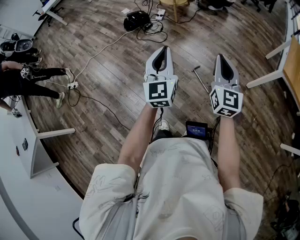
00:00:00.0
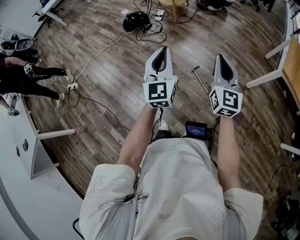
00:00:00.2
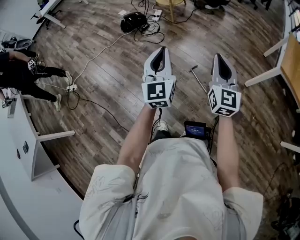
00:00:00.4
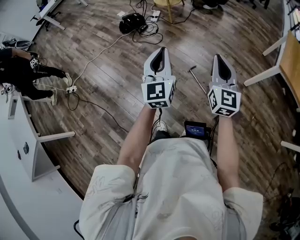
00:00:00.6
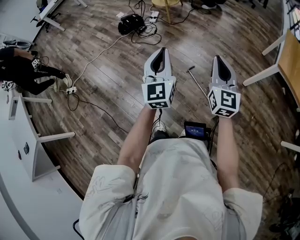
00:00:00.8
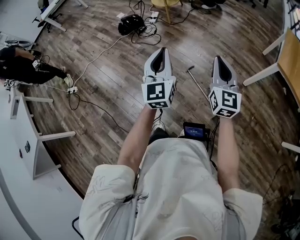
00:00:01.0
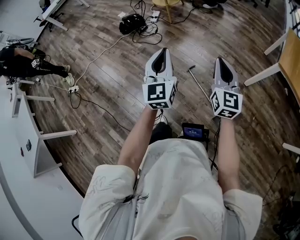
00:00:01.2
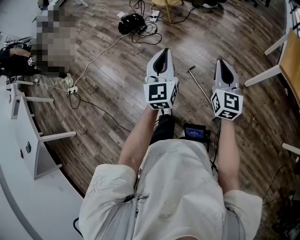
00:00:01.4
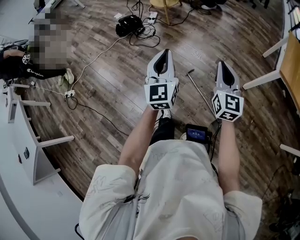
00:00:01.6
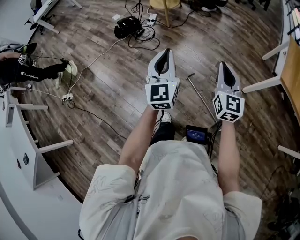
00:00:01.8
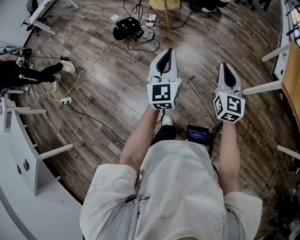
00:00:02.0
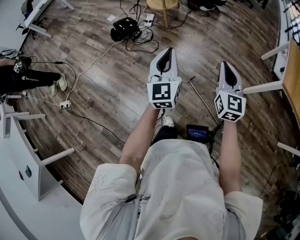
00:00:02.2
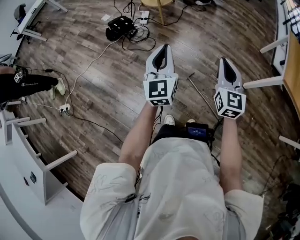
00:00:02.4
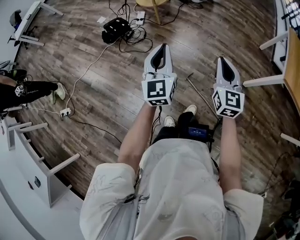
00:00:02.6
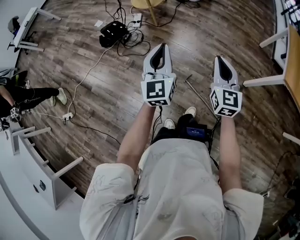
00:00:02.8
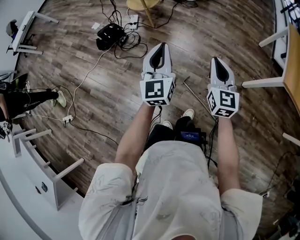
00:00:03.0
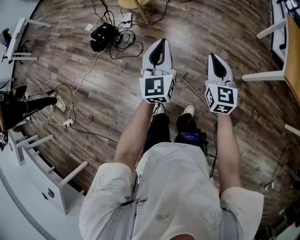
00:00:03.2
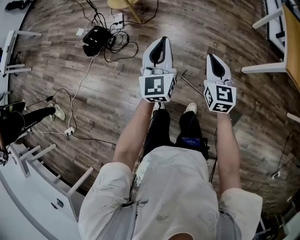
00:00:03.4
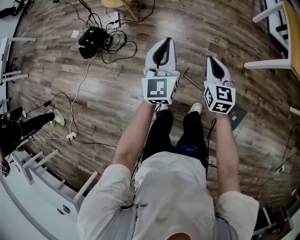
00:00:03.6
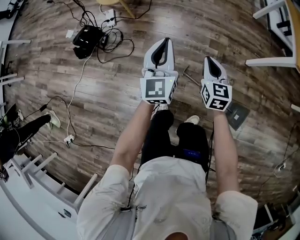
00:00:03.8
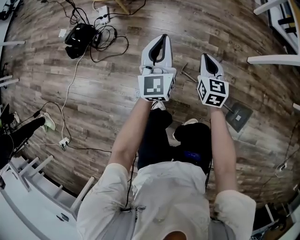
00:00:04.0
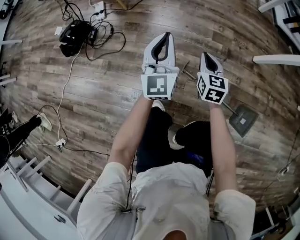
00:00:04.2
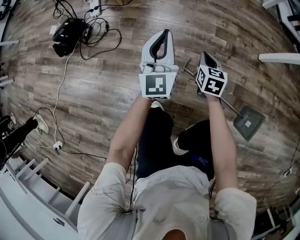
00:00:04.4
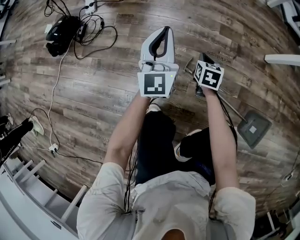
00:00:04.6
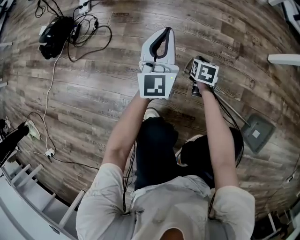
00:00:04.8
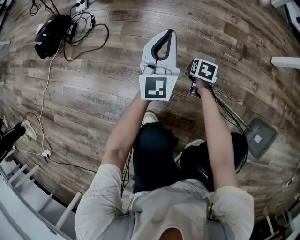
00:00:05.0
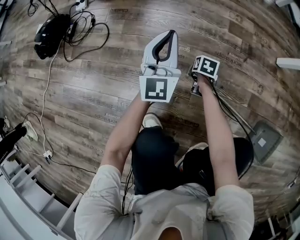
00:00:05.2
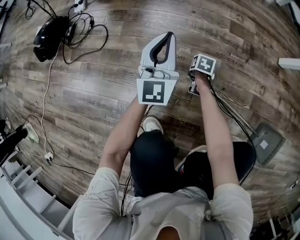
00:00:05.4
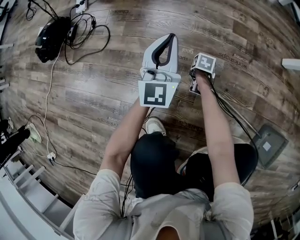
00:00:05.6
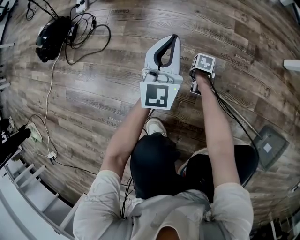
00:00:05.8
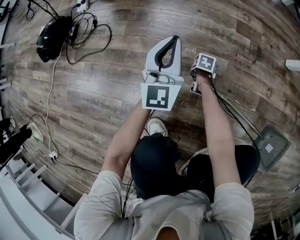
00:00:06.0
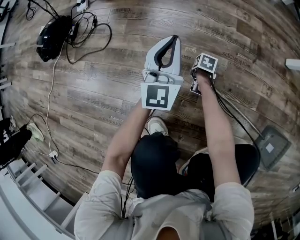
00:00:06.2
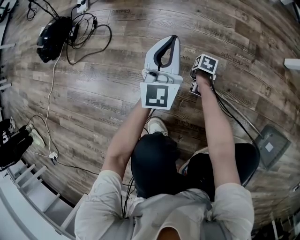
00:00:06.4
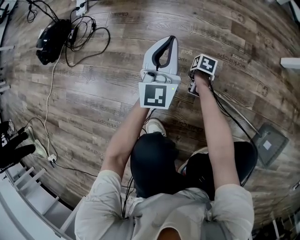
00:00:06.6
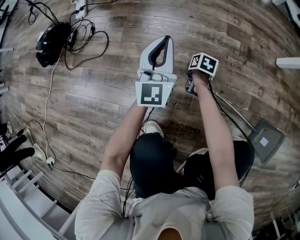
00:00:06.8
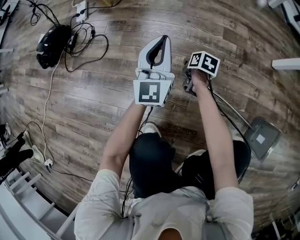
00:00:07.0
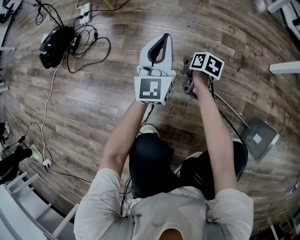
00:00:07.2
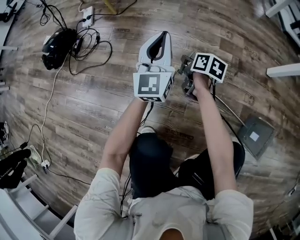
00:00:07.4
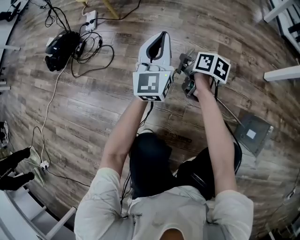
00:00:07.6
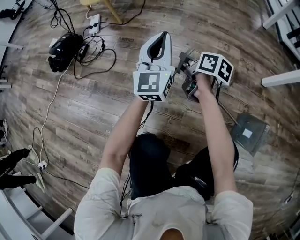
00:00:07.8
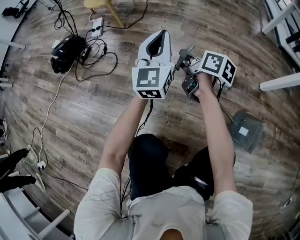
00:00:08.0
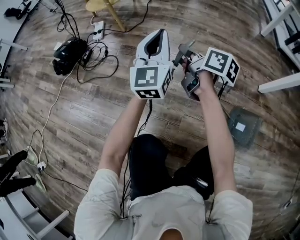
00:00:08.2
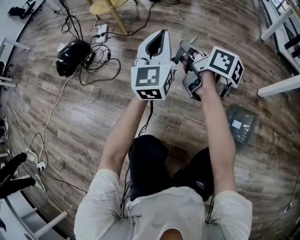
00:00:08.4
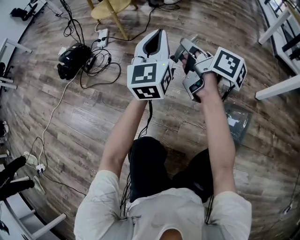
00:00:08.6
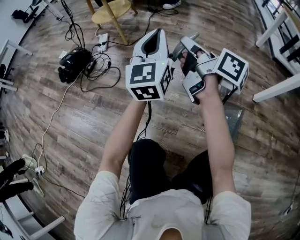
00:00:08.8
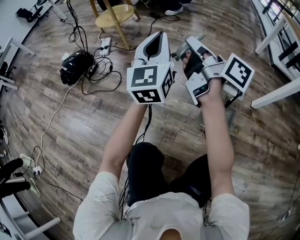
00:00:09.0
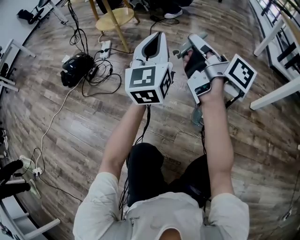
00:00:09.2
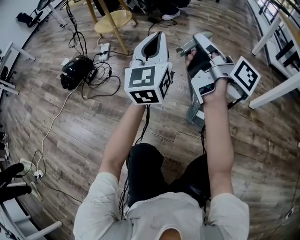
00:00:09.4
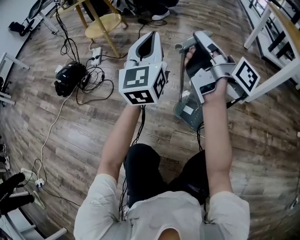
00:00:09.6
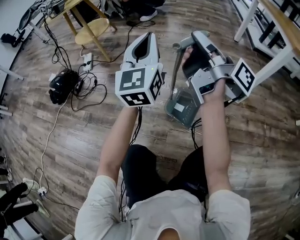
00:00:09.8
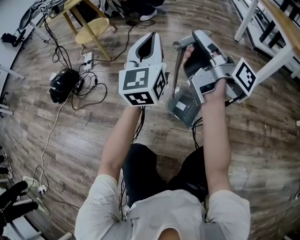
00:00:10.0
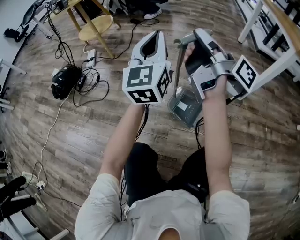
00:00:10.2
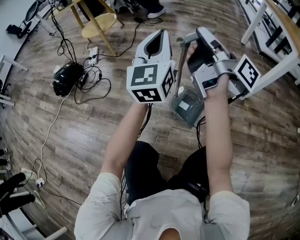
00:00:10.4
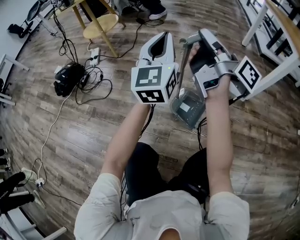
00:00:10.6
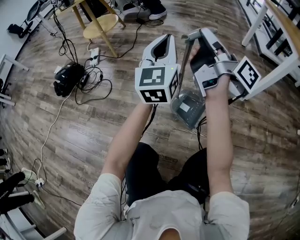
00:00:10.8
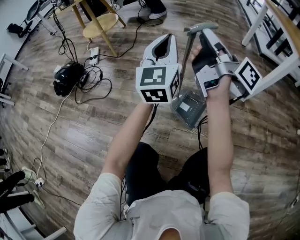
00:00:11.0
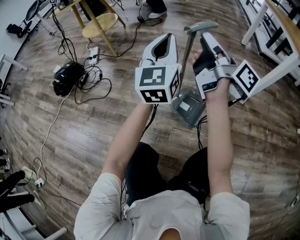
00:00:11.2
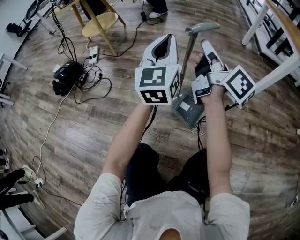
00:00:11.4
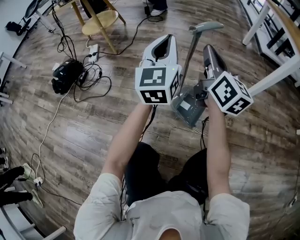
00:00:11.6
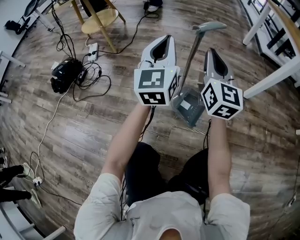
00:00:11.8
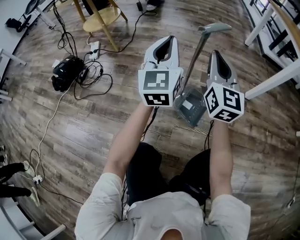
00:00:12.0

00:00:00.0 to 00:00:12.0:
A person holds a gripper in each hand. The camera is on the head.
00:00:00.0 to 00:00:01.6: The right gripper heads to the right, downward and forward, covering some 15 cm; the left gripper moves to the right, forward and downward, about 15 cm.
00:00:01.6 to 00:00:03.0: The two grippers travel together, forward, about 40 cm.
00:00:03.0 to 00:00:04.4: The two grippers go about 80 cm downward. The right gripper angles its fingers downward, by some 30 degrees.
00:00:04.4 to 00:00:06.0: Both grippers move downward, approximately 60 cm. The right gripper points its fingers roughly 40 degrees further downward, and opens up.
00:00:06.0 to 00:00:07.6: The right gripper travels upward by roughly 40 cm, and tilts its fingers roughly 40 degrees upward. Meanwhile the left gripper travels upward by approximately 25 cm.
00:00:07.6 to 00:00:09.0: The left gripper shifts some 30 cm upward; the right gripper is displaced upward by roughly 40 cm, and angles its fingers upward, by some 40 degrees.
00:00:09.0 to 00:00:10.4: The grippers both shift to the right by roughly 15 cm.
00:00:10.4 to 00:00:12.0: The left gripper goes roughly 10 cm to the left and downward. The right gripper moves downward, approximately 10 cm, and twists roughly 80 degrees counterclockwise, seen from behind.

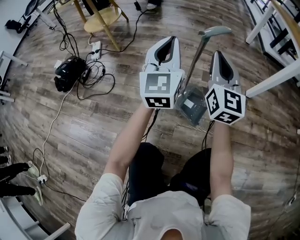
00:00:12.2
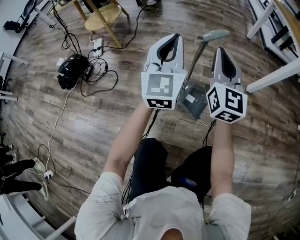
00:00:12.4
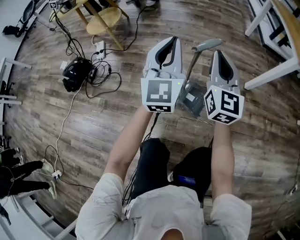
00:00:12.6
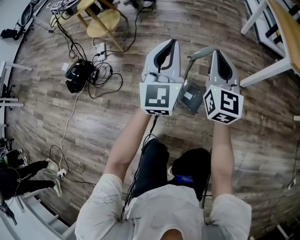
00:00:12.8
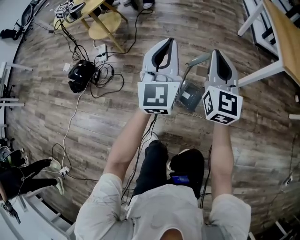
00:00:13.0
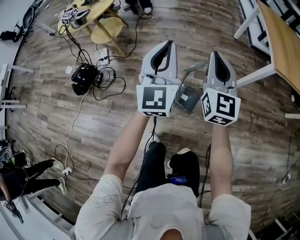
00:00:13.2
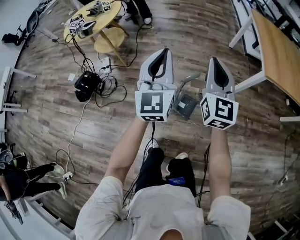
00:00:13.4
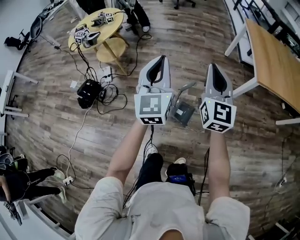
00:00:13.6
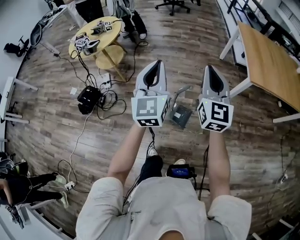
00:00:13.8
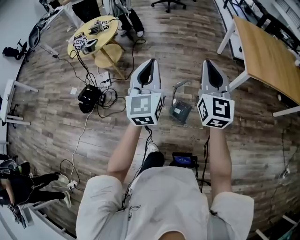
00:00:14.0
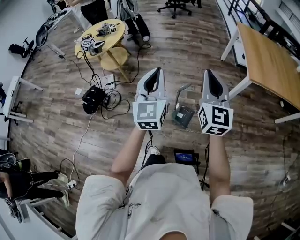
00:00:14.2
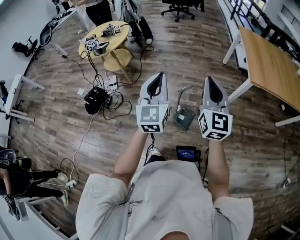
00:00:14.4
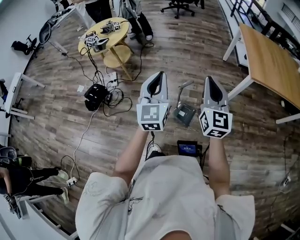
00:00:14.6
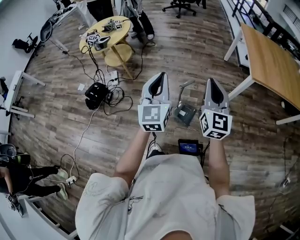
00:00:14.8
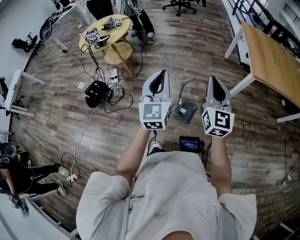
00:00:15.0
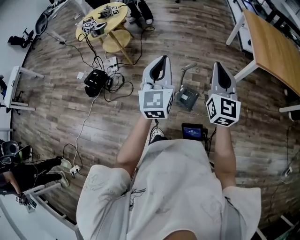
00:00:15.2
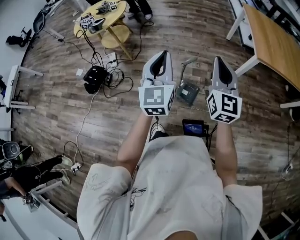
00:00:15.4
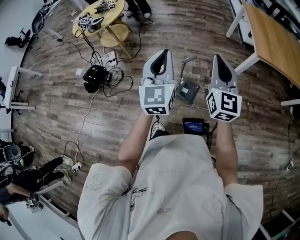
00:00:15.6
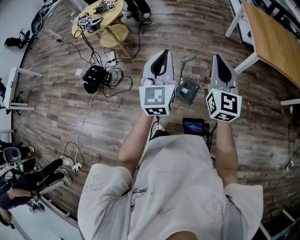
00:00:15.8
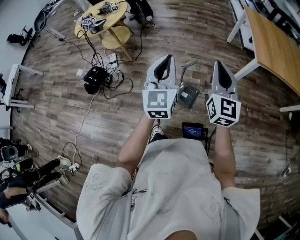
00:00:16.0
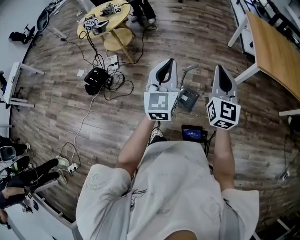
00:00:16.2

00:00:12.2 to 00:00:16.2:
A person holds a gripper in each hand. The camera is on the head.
00:00:12.2 to 00:00:13.6: The two grippers go about 90 cm upward.
00:00:13.6 to 00:00:14.8: Both grippers travel together backward, approximately 25 cm.
00:00:14.8 to 00:00:16.2: The right gripper ends up about 5 cm from where it was. Meanwhile the left gripper shifts by some 5 cm.

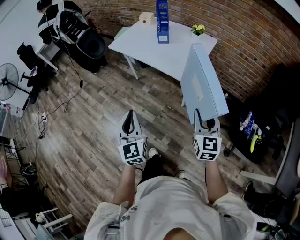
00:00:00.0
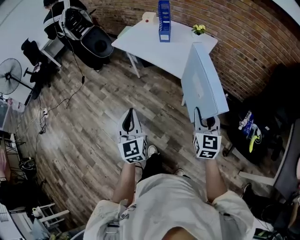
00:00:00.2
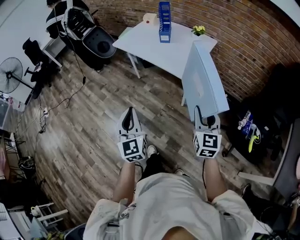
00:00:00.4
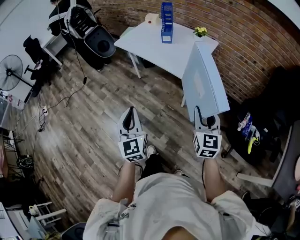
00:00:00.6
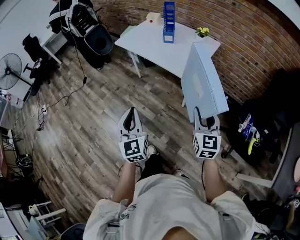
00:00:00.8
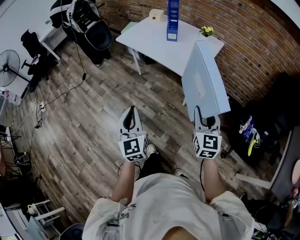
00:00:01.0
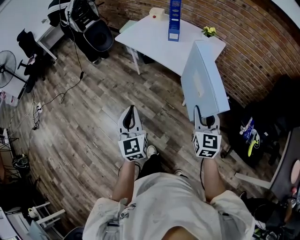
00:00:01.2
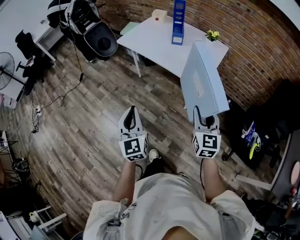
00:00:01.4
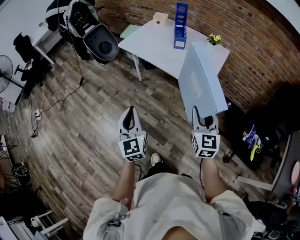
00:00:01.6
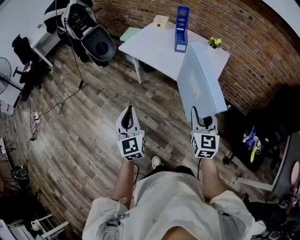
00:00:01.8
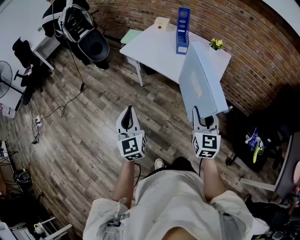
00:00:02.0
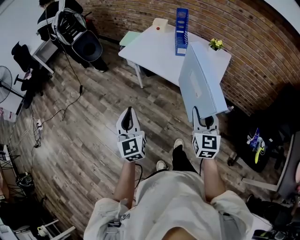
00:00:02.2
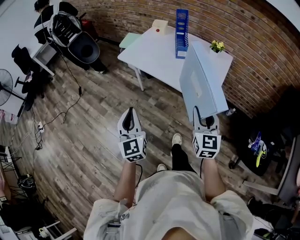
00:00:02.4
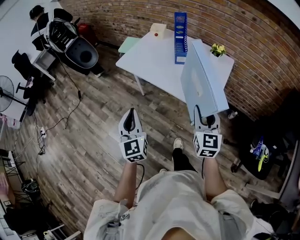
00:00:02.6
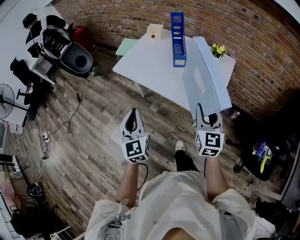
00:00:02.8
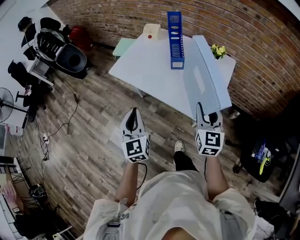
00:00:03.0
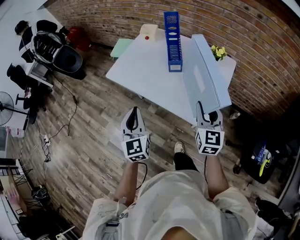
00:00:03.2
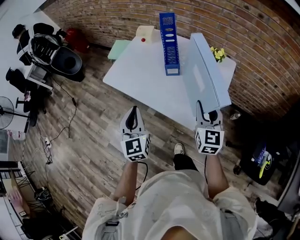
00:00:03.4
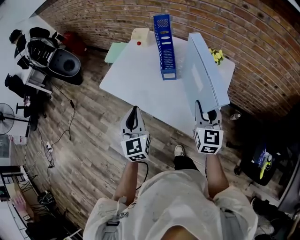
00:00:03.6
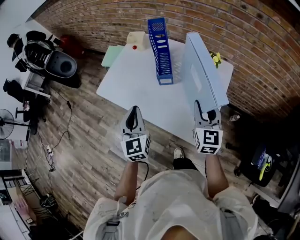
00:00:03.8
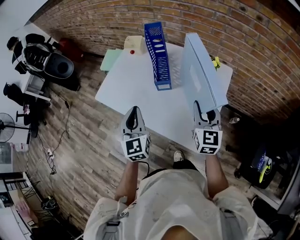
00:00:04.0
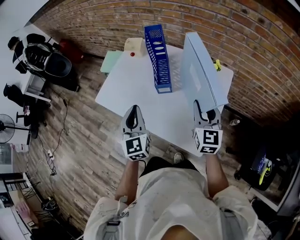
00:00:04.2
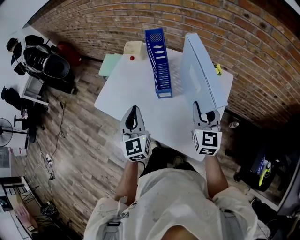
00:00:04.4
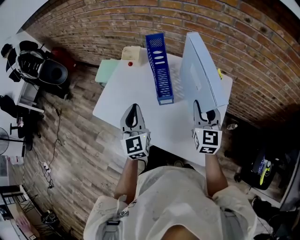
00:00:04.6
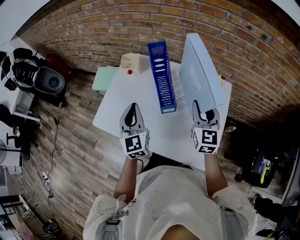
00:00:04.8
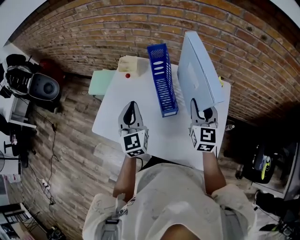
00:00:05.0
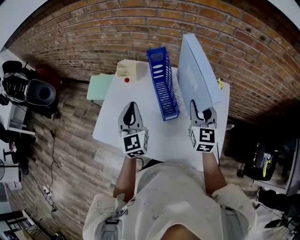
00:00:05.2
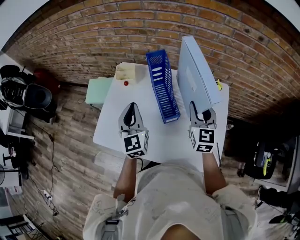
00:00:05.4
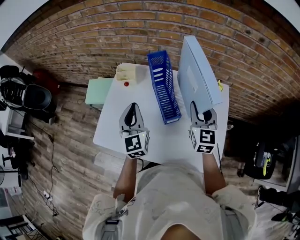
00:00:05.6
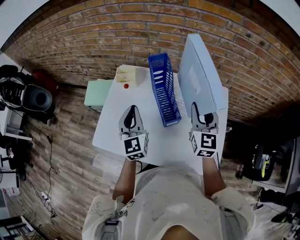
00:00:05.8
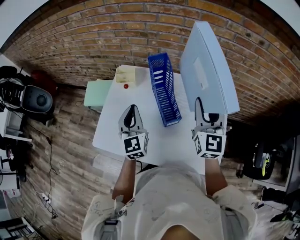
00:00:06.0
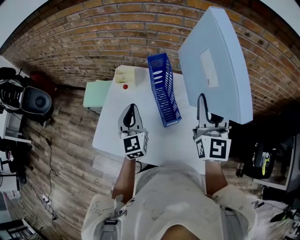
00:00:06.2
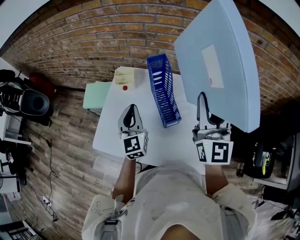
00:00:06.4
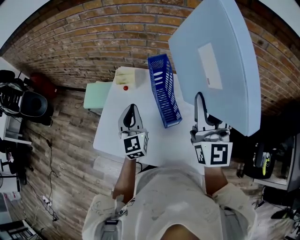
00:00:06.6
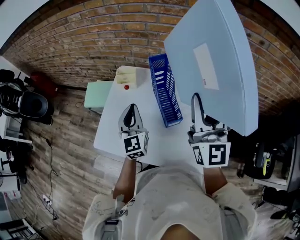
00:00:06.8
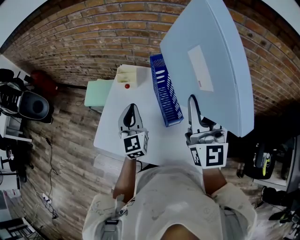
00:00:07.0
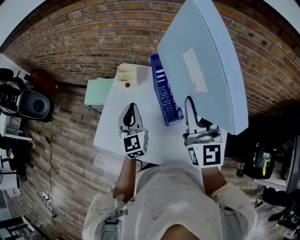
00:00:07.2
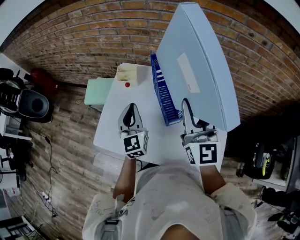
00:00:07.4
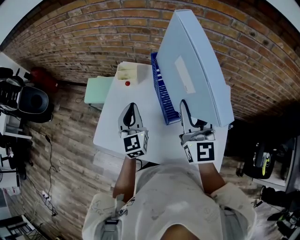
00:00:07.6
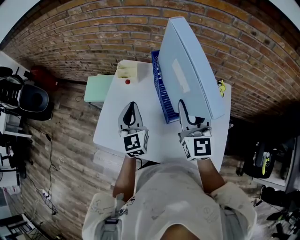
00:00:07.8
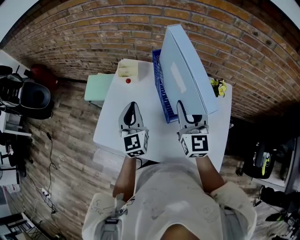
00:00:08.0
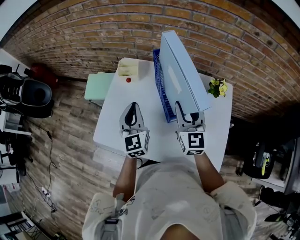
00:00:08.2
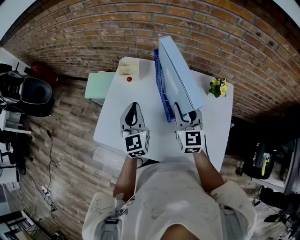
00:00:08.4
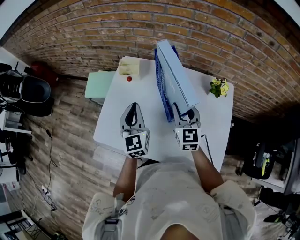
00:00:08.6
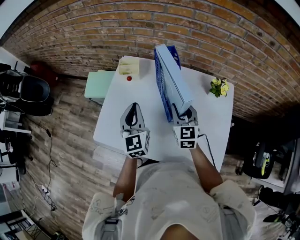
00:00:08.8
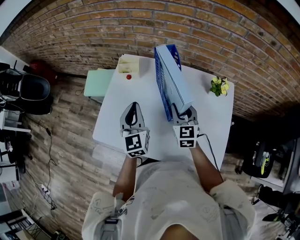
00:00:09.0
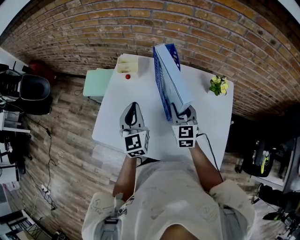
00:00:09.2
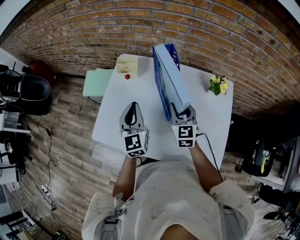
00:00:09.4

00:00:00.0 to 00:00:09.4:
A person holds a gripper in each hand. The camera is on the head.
00:00:00.0 to 00:00:01.6: The two grippers go about 15 cm to the left and forward.
00:00:01.6 to 00:00:03.2: Both grippers move forward, about 25 cm.
00:00:03.2 to 00:00:04.8: Both grippers travel together forward, approximately 25 cm.
00:00:04.8 to 00:00:06.2: The left gripper is displaced forward by approximately 10 cm, while the right gripper moves upward, about 15 cm.
00:00:06.2 to 00:00:07.8: The right gripper shifts approximately 10 cm to the left and downward.
00:00:07.8 to 00:00:09.4: The right gripper moves downward, roughly 15 cm, and rotates some 20 degrees.
